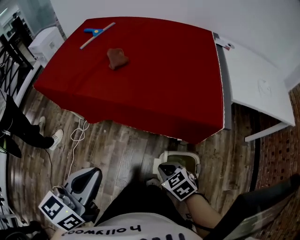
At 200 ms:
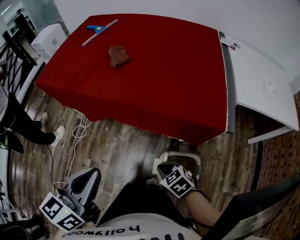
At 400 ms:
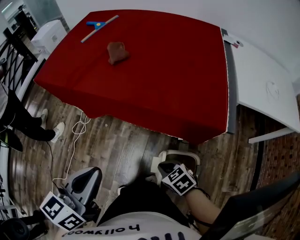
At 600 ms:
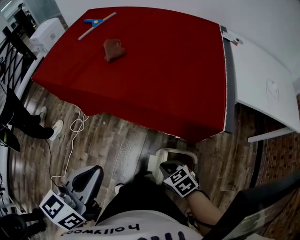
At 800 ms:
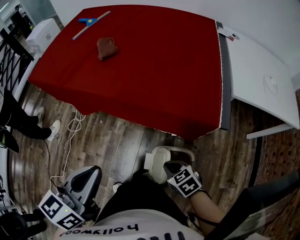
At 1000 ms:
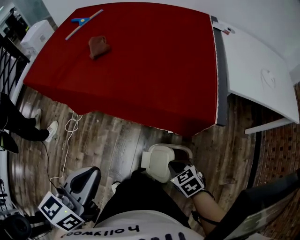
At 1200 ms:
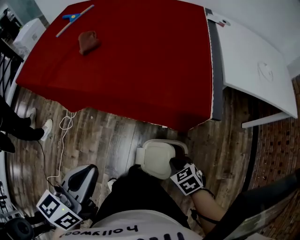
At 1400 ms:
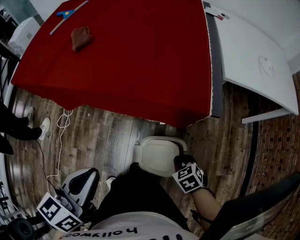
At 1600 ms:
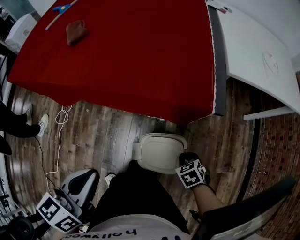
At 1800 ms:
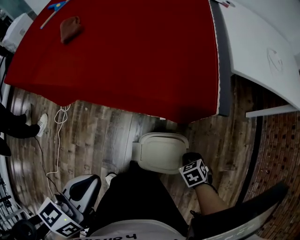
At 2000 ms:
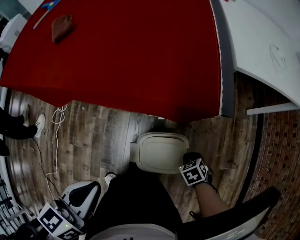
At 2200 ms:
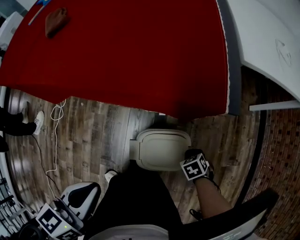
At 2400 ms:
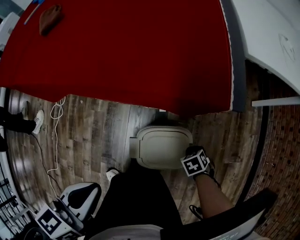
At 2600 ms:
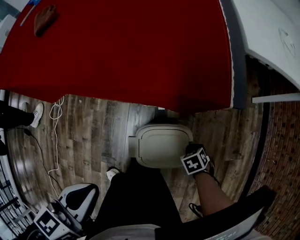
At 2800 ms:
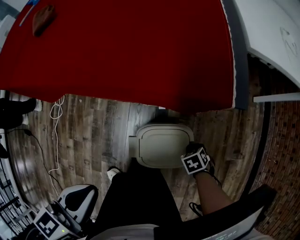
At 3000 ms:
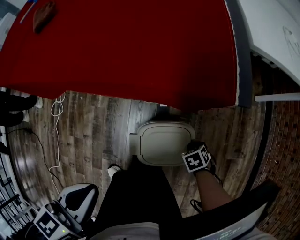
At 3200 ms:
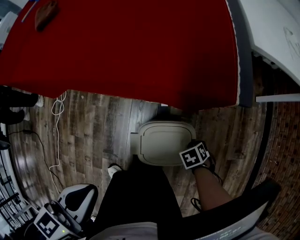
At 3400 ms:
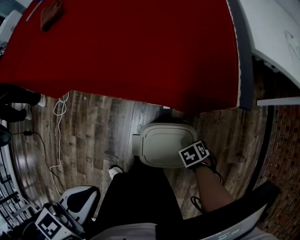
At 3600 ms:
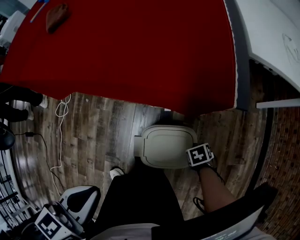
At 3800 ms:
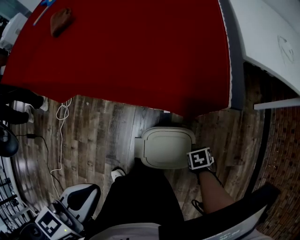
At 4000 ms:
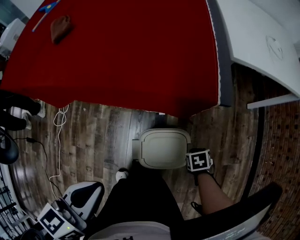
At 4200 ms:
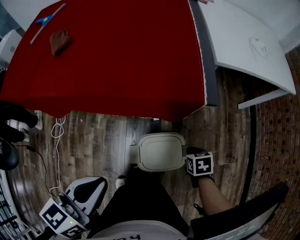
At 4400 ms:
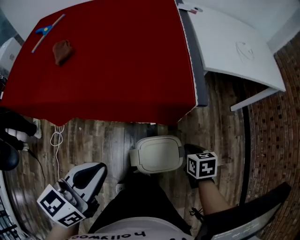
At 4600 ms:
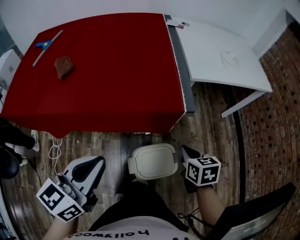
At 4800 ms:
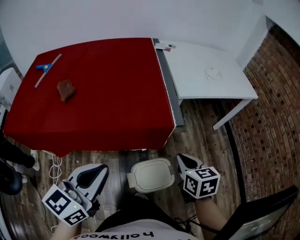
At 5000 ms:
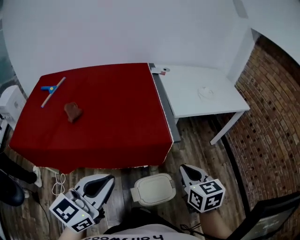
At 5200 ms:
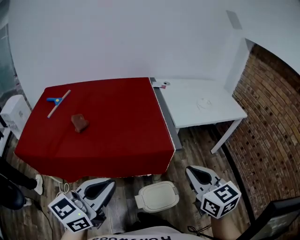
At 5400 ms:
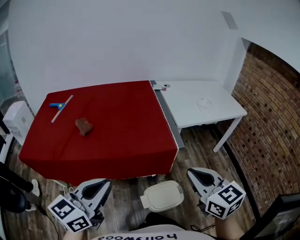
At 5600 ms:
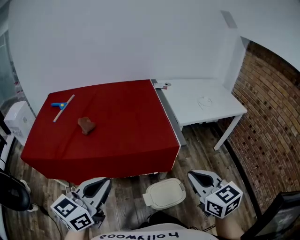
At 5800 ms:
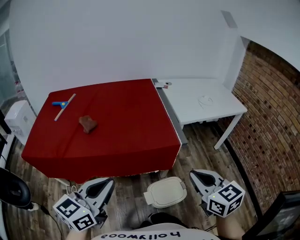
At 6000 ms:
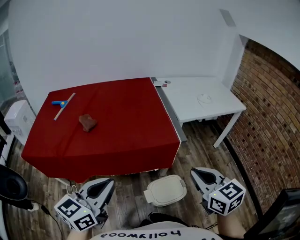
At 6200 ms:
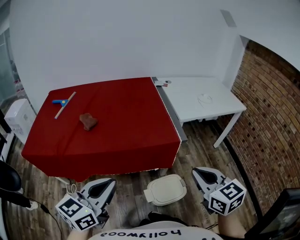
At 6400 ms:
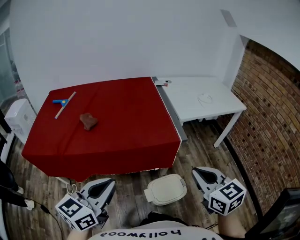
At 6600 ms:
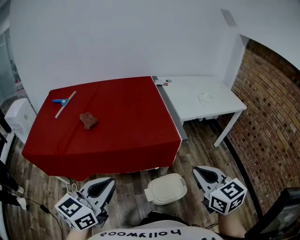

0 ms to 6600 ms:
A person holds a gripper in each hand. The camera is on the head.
0 ms to 1600 ms: The right gripper changes place by approximately 30 cm, and swivels some 30 degrees. The left gripper moves roughly 15 cm.
1600 ms to 3200 ms: The left gripper travels downward by approximately 5 cm. Meanwhile the right gripper is displaced downward by some 15 cm.
3200 ms to 5000 ms: The right gripper shifts about 50 cm upward, and points its fingers approximately 60 degrees further upward. Meanwhile the left gripper moves upward, some 25 cm, and turns by roughly 40 degrees.
5000 ms to 6600 ms: The left gripper goes approximately 10 cm to the left and backward. Meanwhile the right gripper heads backward and upward, covering approximately 15 cm.

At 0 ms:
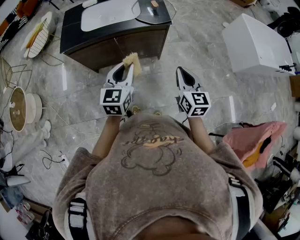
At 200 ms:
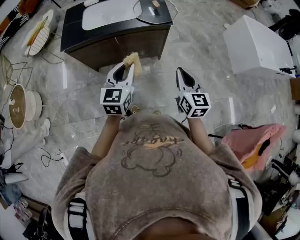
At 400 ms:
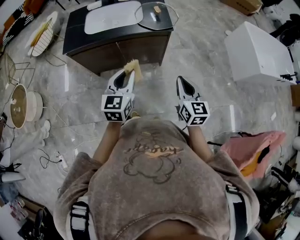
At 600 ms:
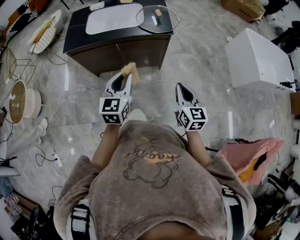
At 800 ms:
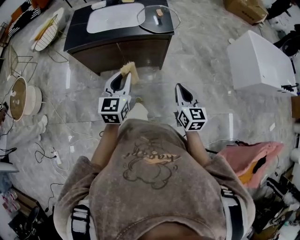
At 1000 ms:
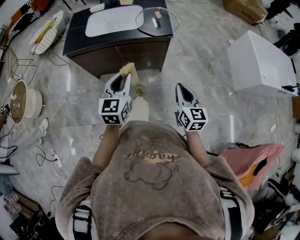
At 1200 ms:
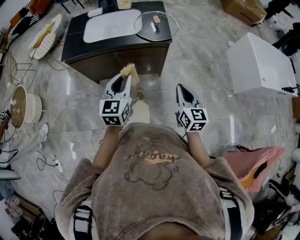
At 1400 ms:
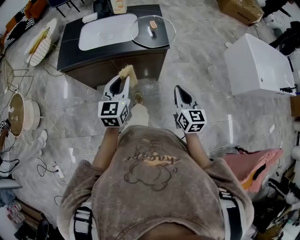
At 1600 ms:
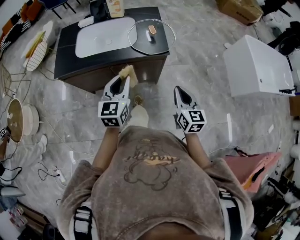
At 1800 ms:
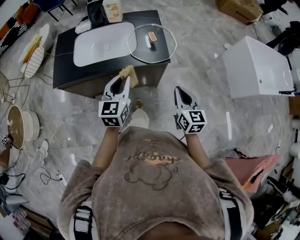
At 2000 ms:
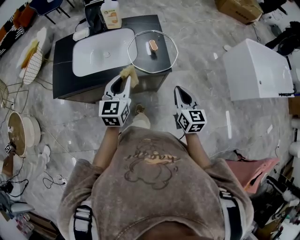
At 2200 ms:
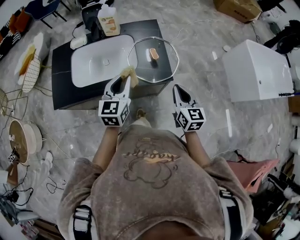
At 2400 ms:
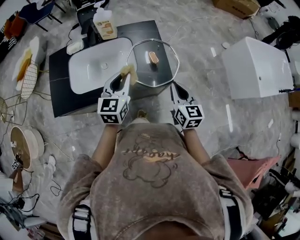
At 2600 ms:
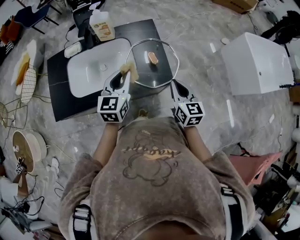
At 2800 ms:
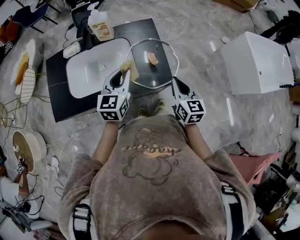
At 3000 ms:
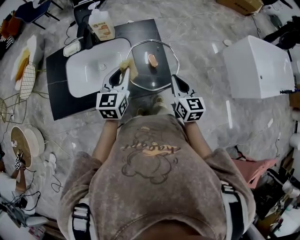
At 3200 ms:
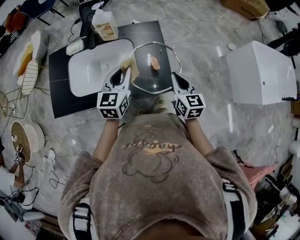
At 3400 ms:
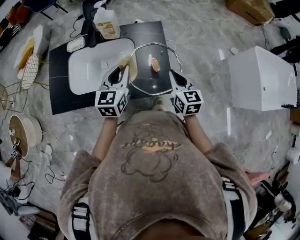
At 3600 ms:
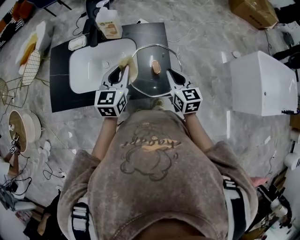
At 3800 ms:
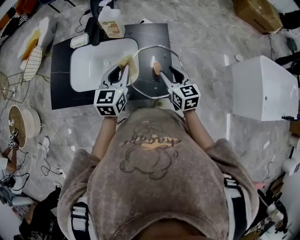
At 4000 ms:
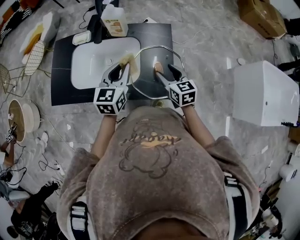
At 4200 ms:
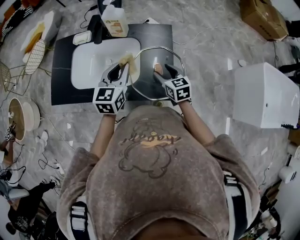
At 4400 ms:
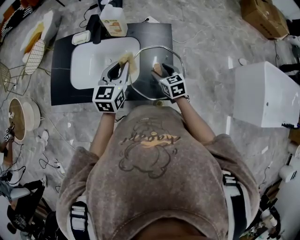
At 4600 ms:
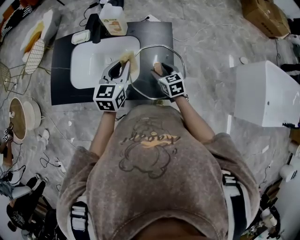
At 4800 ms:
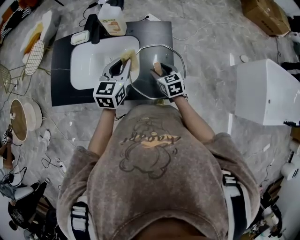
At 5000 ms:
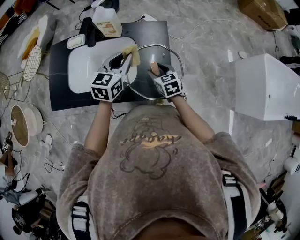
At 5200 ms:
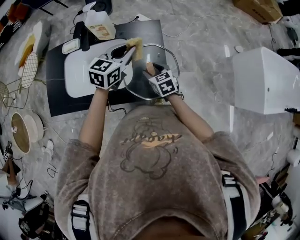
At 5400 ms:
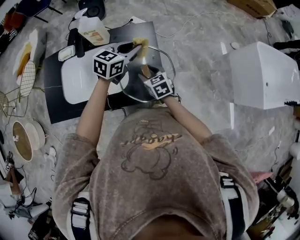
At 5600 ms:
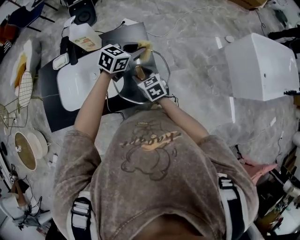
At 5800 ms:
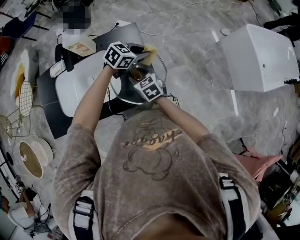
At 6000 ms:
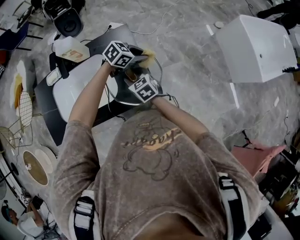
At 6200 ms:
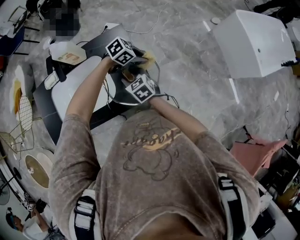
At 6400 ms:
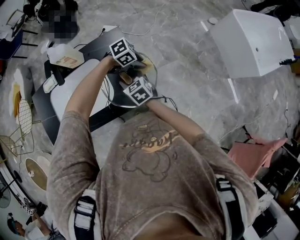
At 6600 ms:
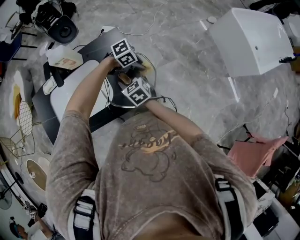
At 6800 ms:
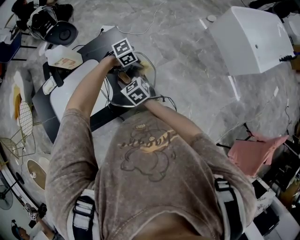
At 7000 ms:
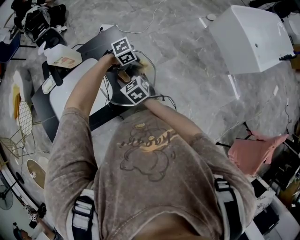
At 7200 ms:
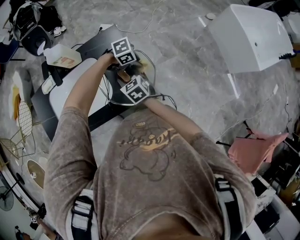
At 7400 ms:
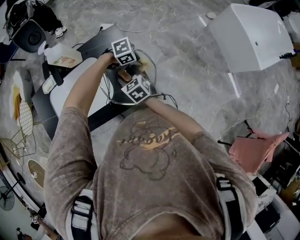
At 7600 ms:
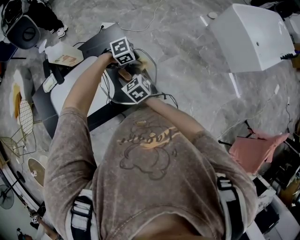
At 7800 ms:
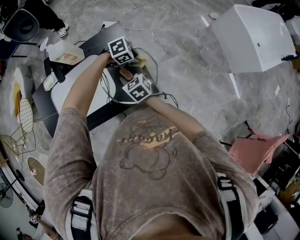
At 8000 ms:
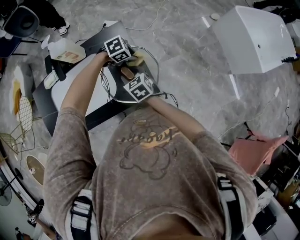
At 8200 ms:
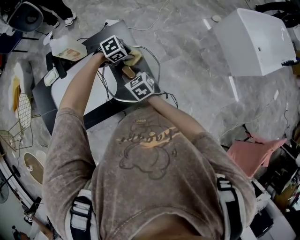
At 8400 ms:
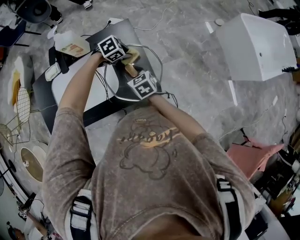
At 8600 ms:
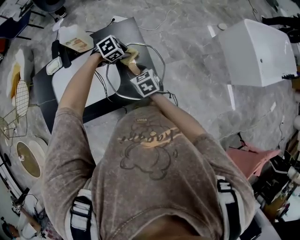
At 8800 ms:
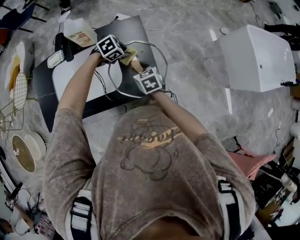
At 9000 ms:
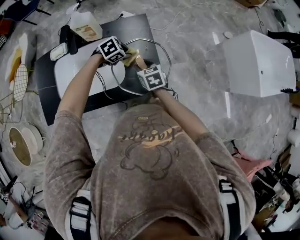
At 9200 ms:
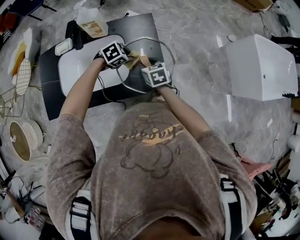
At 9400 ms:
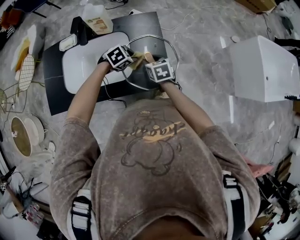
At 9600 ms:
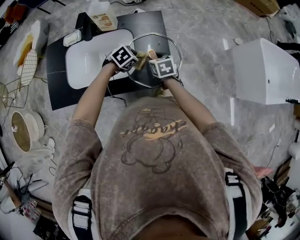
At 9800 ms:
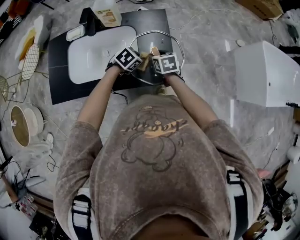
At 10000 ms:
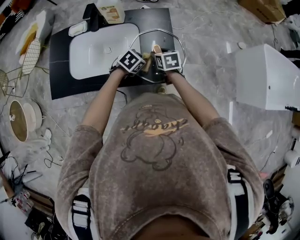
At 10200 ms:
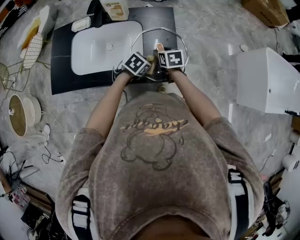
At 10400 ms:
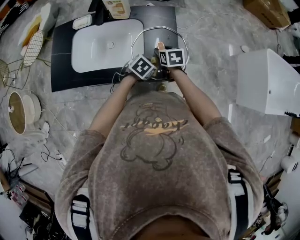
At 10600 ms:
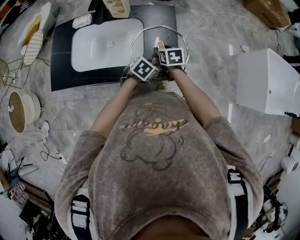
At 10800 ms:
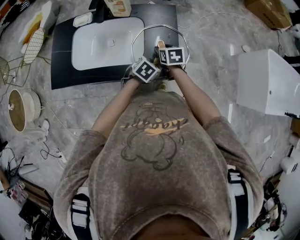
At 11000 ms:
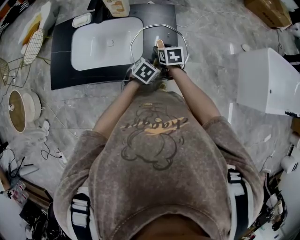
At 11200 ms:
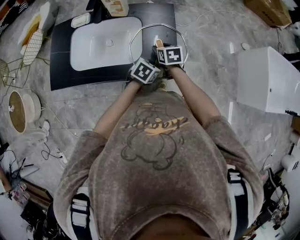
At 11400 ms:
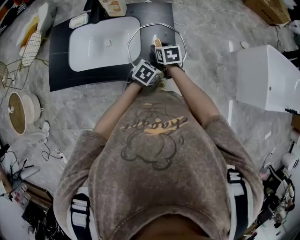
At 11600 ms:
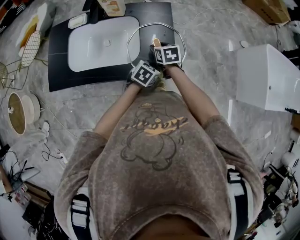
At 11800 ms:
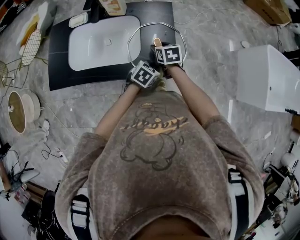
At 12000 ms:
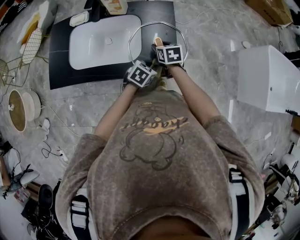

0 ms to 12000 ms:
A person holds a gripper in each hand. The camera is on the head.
0 ms to 1600 ms: The two grippers go about 15 cm forward.
1600 ms to 3000 ms: Both grippers move forward, roughly 30 cm.
3000 ms to 4400 ms: The left gripper is displaced forward by some 5 cm; the right gripper moves forward, downward and to the left, roughly 20 cm, rotates approximately 30 degrees, and opens up.
4400 ms to 6000 ms: The left gripper shifts by approximately 30 cm, and swivels approximately 80 degrees.
6000 ms to 7600 ms: The left gripper moves downward, approximately 5 cm, and rotates about 30 degrees.
7600 ms to 9000 ms: The left gripper moves about 15 cm, and swivels roughly 30 degrees.
9000 ms to 10400 ms: The left gripper goes about 15 cm backward and to the right, and swivels approximately 30 degrees.
10400 ms to 12000 ms: The grippers move only a little.

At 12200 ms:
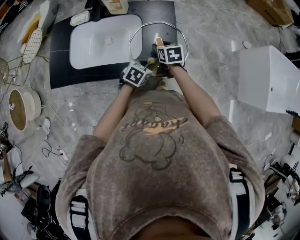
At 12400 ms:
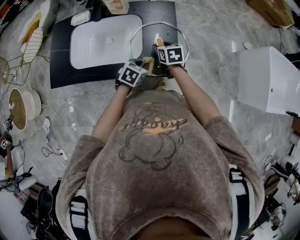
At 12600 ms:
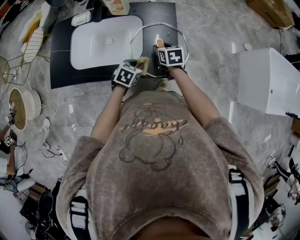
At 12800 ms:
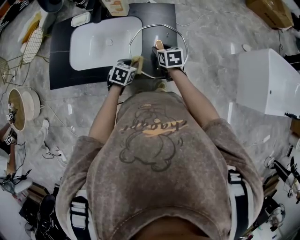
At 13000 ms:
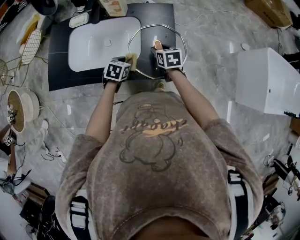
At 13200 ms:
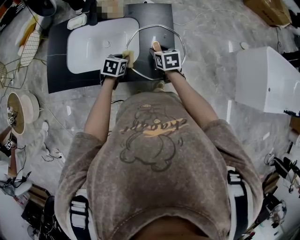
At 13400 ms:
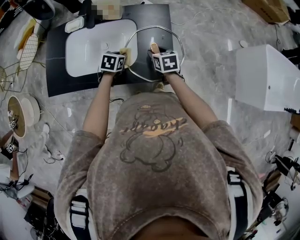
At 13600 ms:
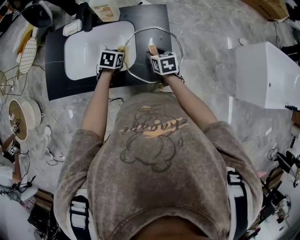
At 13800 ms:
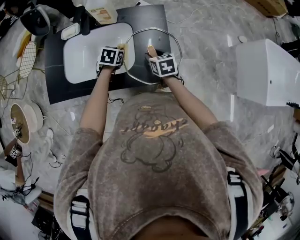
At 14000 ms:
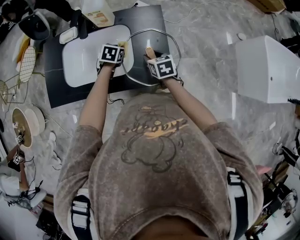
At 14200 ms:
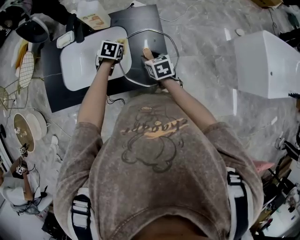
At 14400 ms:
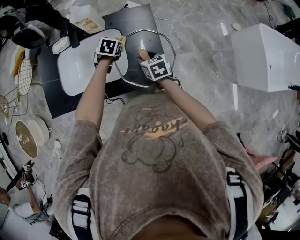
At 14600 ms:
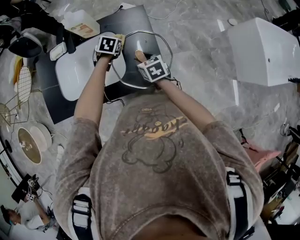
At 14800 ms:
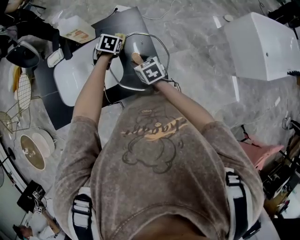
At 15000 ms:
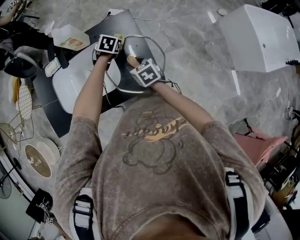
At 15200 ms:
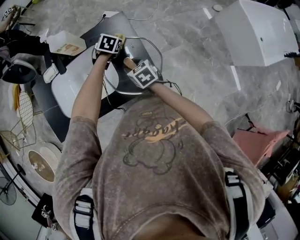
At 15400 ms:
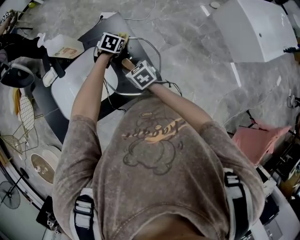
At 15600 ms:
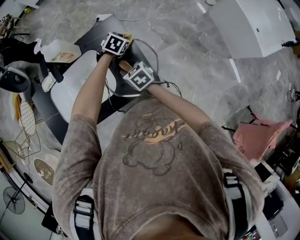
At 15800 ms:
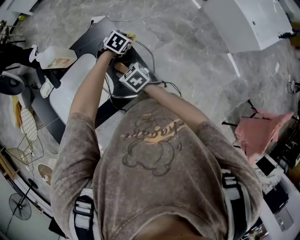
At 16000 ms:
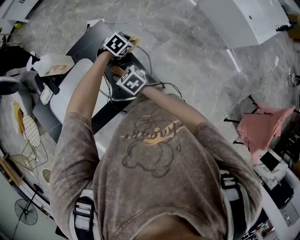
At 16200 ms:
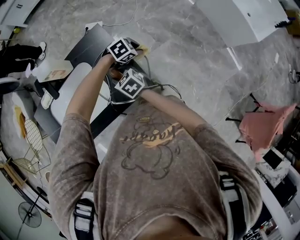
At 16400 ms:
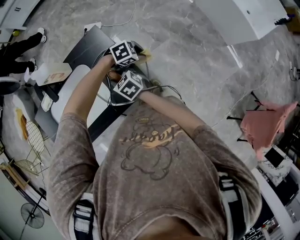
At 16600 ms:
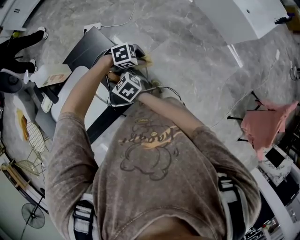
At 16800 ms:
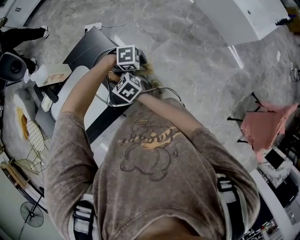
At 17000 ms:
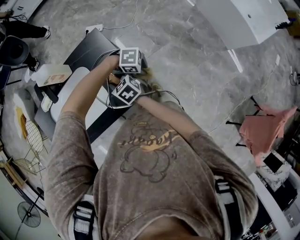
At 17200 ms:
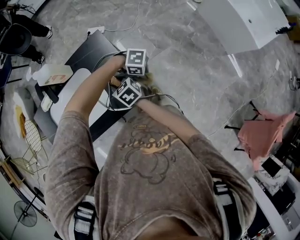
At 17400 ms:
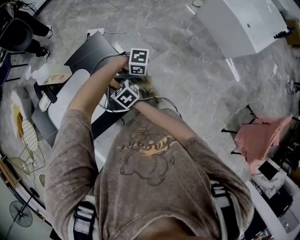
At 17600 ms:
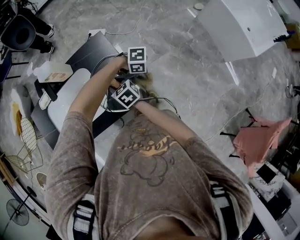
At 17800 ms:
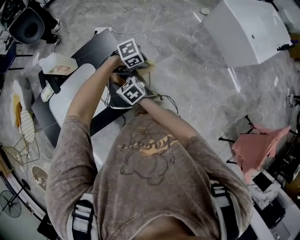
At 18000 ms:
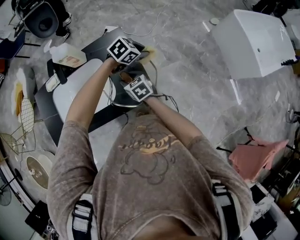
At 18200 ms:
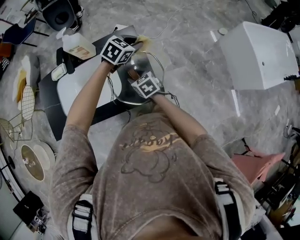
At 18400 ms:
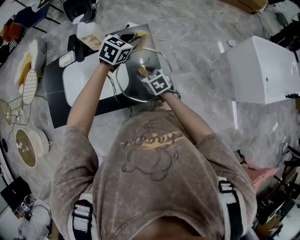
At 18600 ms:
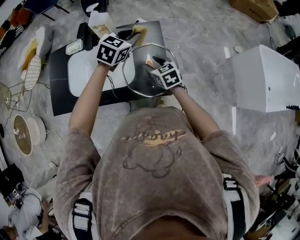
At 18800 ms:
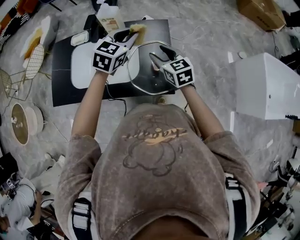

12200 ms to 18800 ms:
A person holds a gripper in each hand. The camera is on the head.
12200 ms to 13800 ms: The left gripper shifts some 20 cm forward and to the left.
13800 ms to 15400 ms: The left gripper heads to the right and forward, covering about 20 cm, and changes its angle by some 30 degrees.
15400 ms to 17200 ms: The left gripper moves some 25 cm, and turns by approximately 90 degrees.
17200 ms to 18800 ms: The right gripper heads upward, covering some 15 cm, and swivels approximately 20 degrees. The left gripper moves some 35 cm, and rotates roughly 120 degrees.
